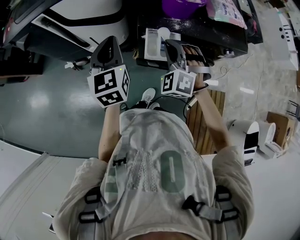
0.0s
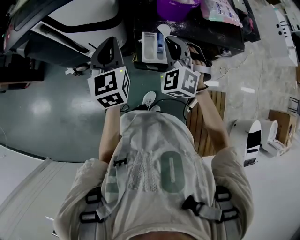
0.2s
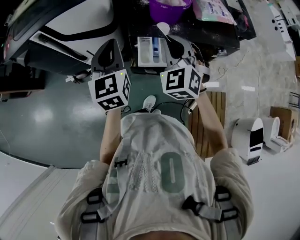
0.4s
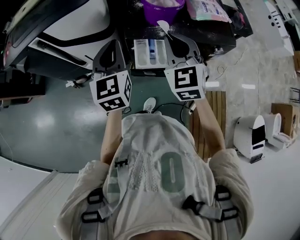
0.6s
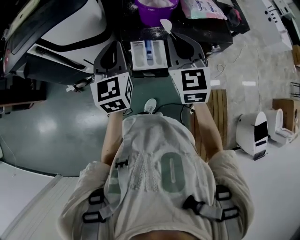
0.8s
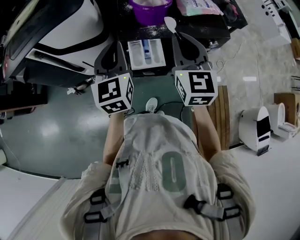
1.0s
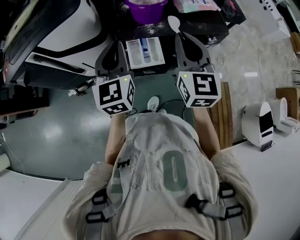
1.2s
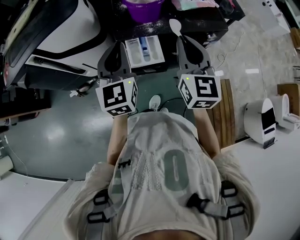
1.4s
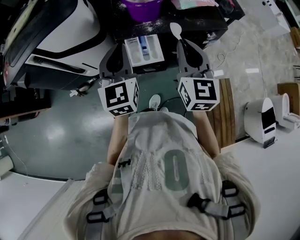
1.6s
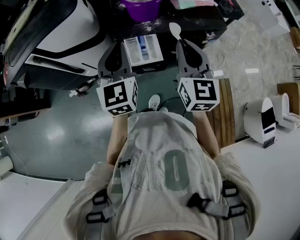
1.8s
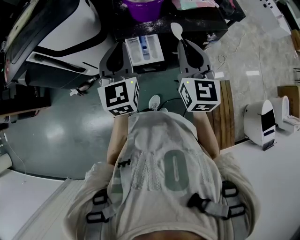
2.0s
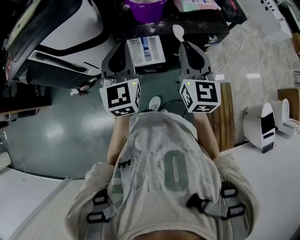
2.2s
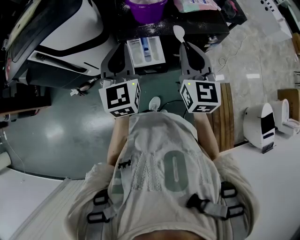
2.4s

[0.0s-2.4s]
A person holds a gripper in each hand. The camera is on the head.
0.0s to 1.2s: The right gripper goes some 20 cm upward and to the right, and rolls clockwise, seen from behind, by approximately 70 degrees. Meanwhile the left gripper travels to the right and upward by about 10 cm.
1.2s to 2.4s: There are only small adjustments of the grippers.

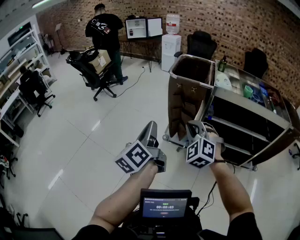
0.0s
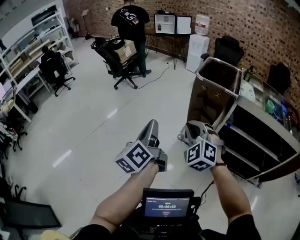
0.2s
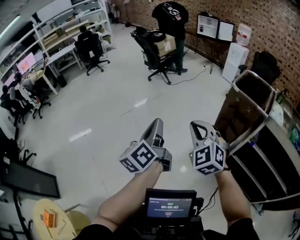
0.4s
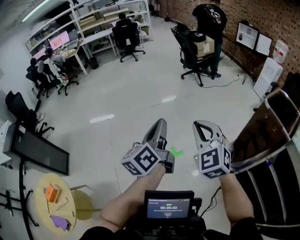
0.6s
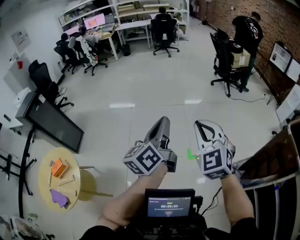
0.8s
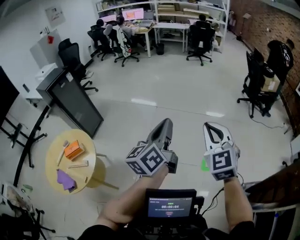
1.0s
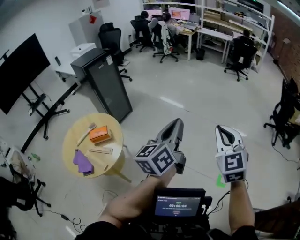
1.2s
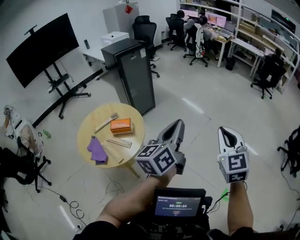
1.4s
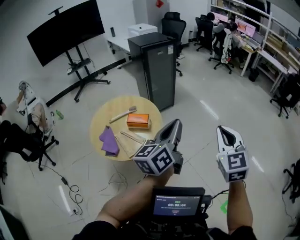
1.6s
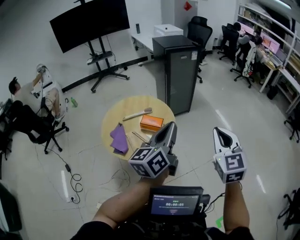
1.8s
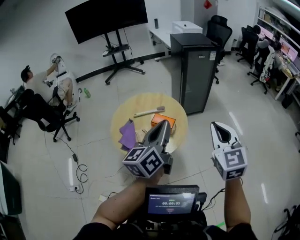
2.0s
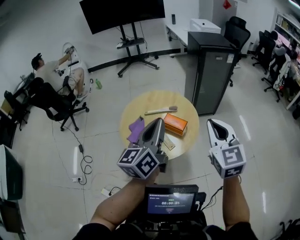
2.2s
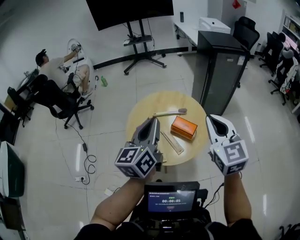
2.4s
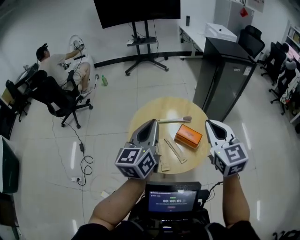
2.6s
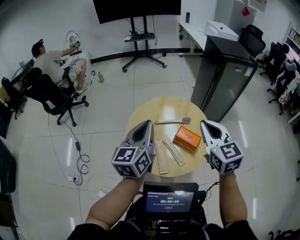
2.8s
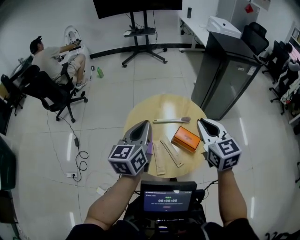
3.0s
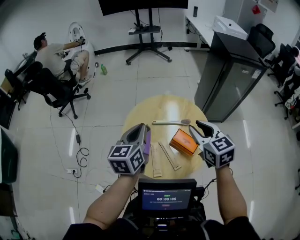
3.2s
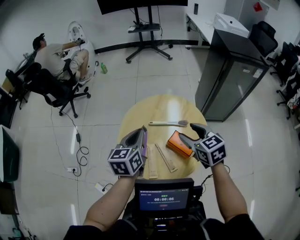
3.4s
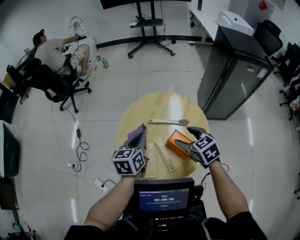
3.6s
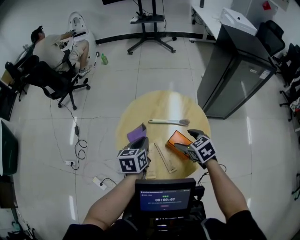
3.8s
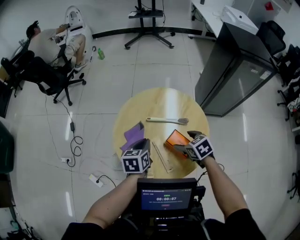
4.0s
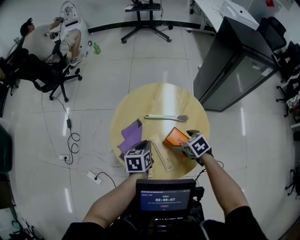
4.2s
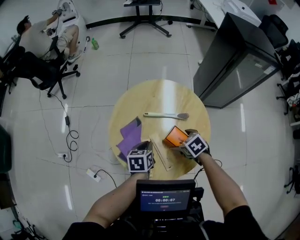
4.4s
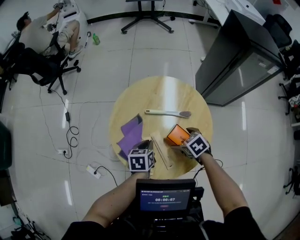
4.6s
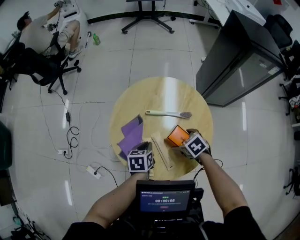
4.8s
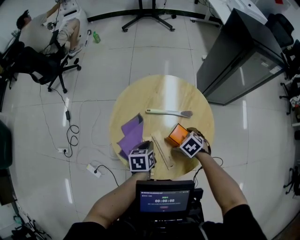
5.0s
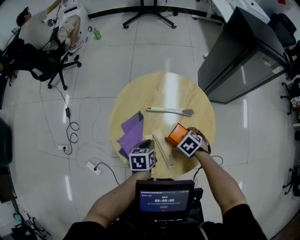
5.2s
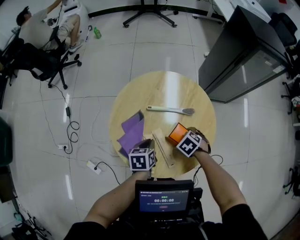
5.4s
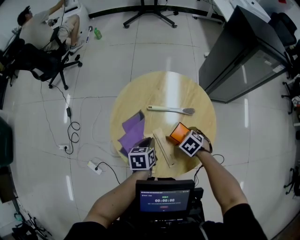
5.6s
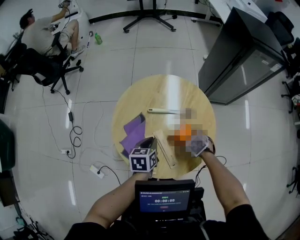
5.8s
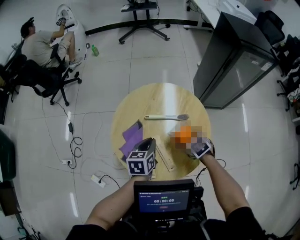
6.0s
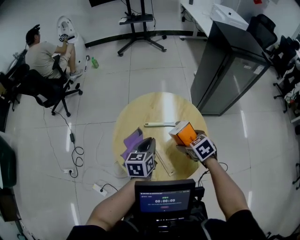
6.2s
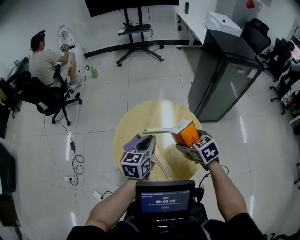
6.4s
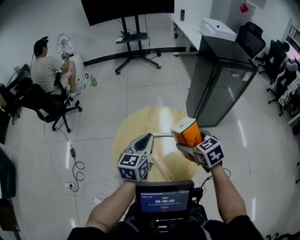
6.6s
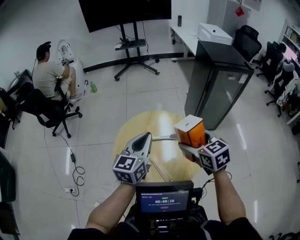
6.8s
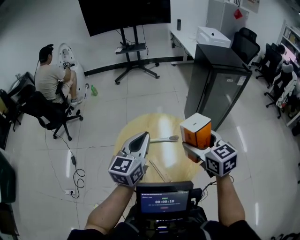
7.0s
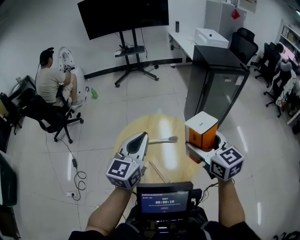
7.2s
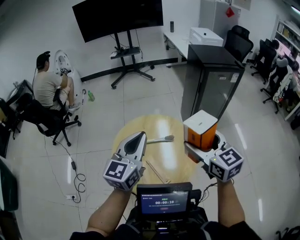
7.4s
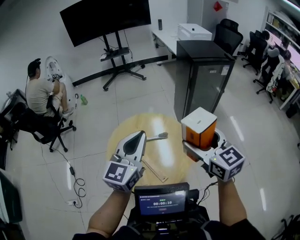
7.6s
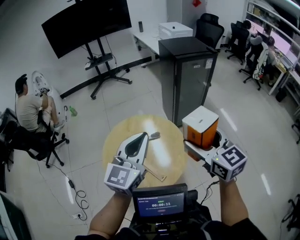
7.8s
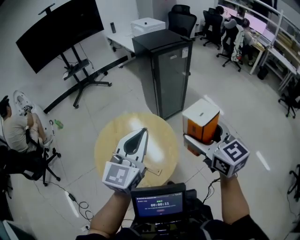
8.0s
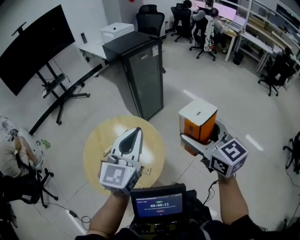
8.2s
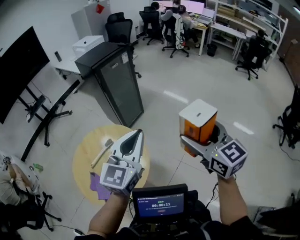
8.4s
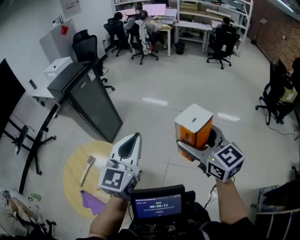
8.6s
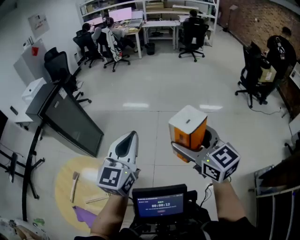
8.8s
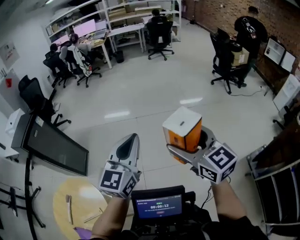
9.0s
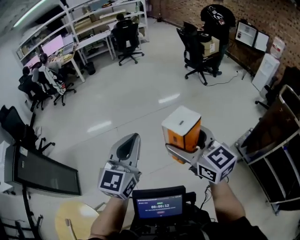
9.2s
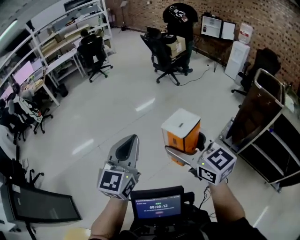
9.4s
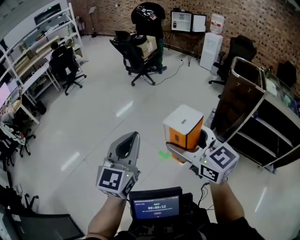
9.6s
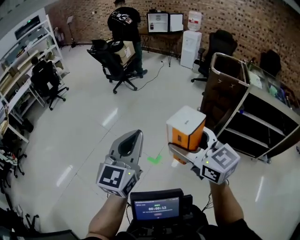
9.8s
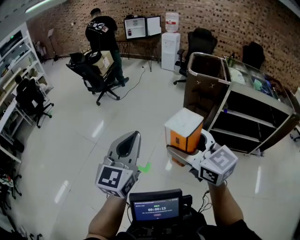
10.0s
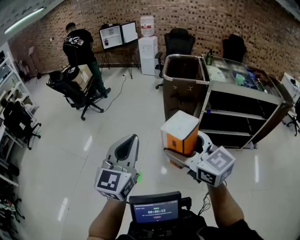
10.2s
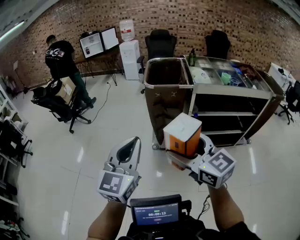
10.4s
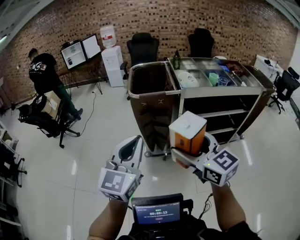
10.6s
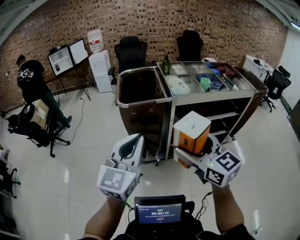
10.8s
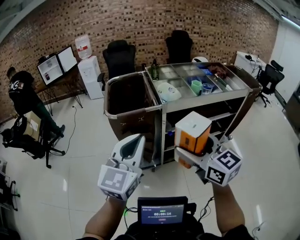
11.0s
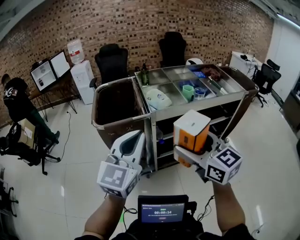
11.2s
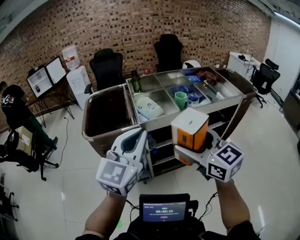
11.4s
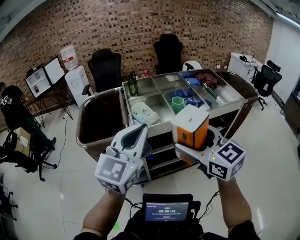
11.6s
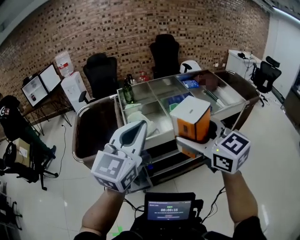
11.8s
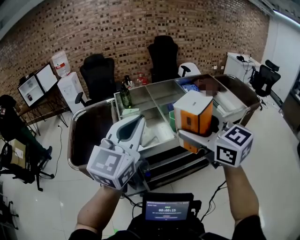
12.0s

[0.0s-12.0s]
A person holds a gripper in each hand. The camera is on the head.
0.0s to 1.6s: The two grippers travel together, roughly 1.5 m. The left gripper changes its angle by approximately 100 degrees, while the right gripper changes its angle by some 100 degrees.
1.6s to 3.0s: The pair of grippers is taken approximately 70 cm. The right gripper swivels approximately 50 degrees, while the left gripper swivels approximately 40 degrees.
3.0s to 4.4s: The right gripper is displaced downward and forward by approximately 40 cm, angles its fingers downward, by about 40 degrees, and opens up. The left gripper travels downward and to the right by about 35 cm, and tips its fingers downward by roughly 40 degrees.
4.4s to 6.0s: The right gripper reaches some 10 cm downward, then returns; the left gripper heads upward, covering roughly 5 cm.
6.0s to 7.6s: The two grippers go about 40 cm upward and backward. The left gripper points its fingers about 40 degrees further upward. Meanwhile the right gripper points its fingers approximately 50 degrees further upward.
7.6s to 9.0s: Both grippers are carried some 90 cm. The right gripper turns by roughly 80 degrees. The left gripper rotates about 80 degrees.
9.0s to 10.4s: Both grippers are carried about 1 m. The right gripper swivels roughly 70 degrees. The left gripper changes its angle by roughly 80 degrees.
10.4s to 12.0s: The two grippers travel together, forward and to the right, approximately 1 m. The left gripper rotates roughly 30 degrees. Meanwhile the right gripper rotates about 20 degrees.

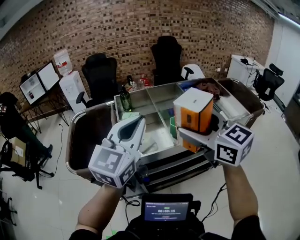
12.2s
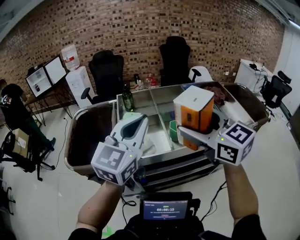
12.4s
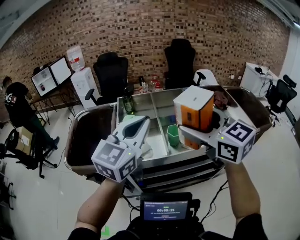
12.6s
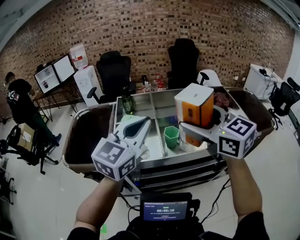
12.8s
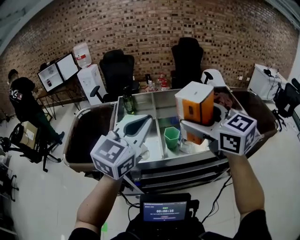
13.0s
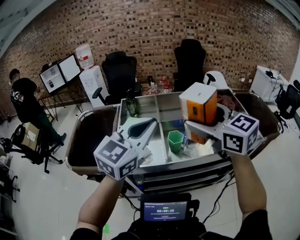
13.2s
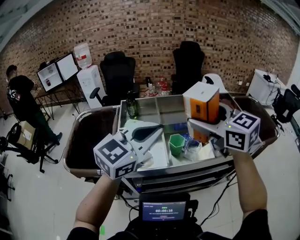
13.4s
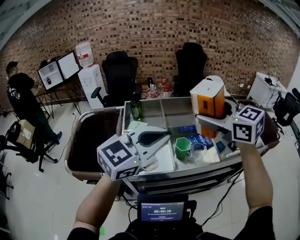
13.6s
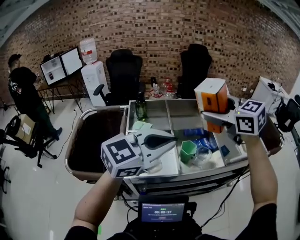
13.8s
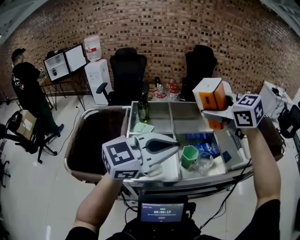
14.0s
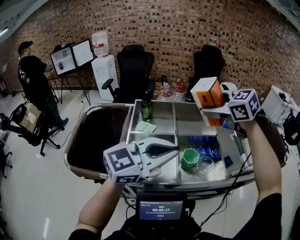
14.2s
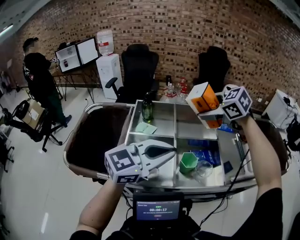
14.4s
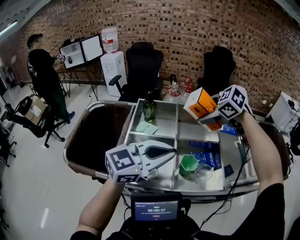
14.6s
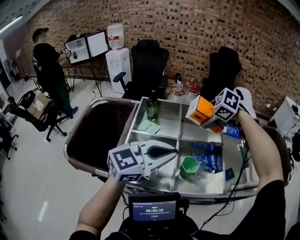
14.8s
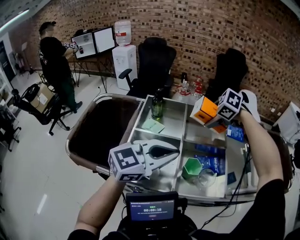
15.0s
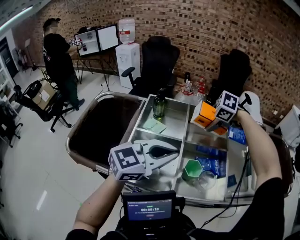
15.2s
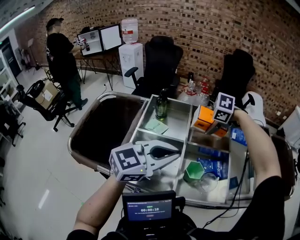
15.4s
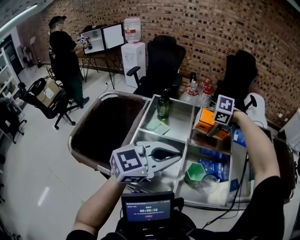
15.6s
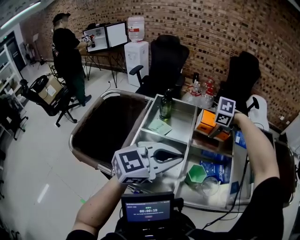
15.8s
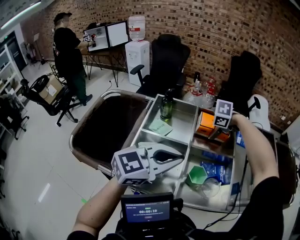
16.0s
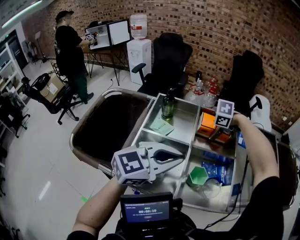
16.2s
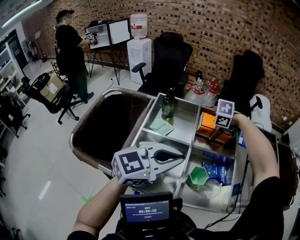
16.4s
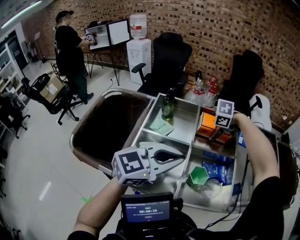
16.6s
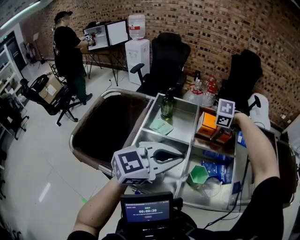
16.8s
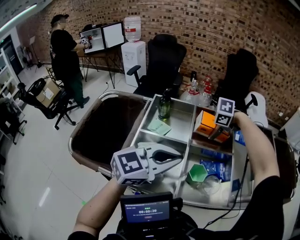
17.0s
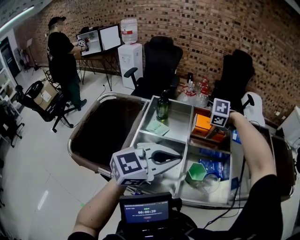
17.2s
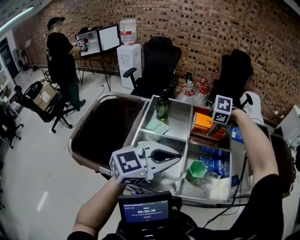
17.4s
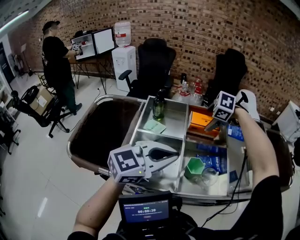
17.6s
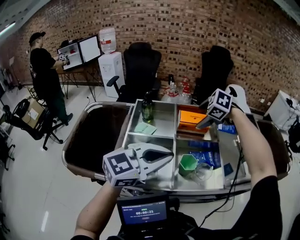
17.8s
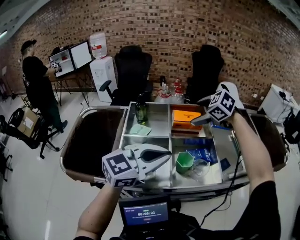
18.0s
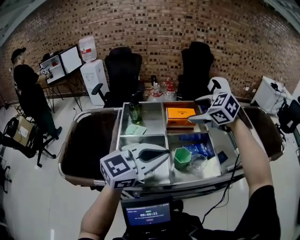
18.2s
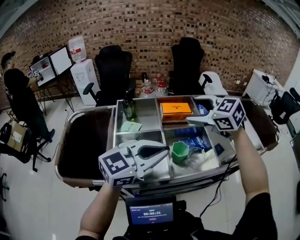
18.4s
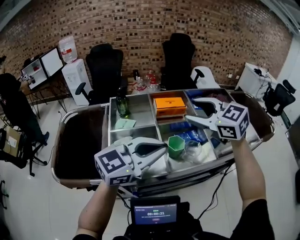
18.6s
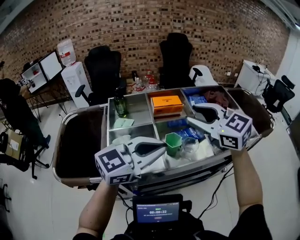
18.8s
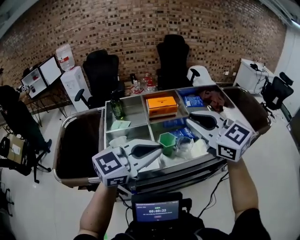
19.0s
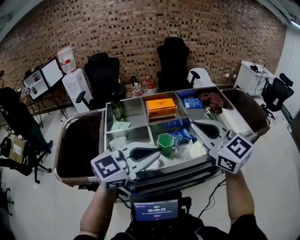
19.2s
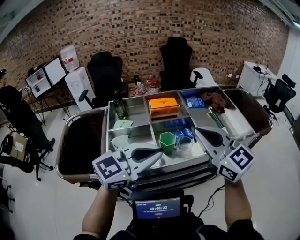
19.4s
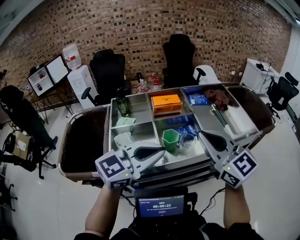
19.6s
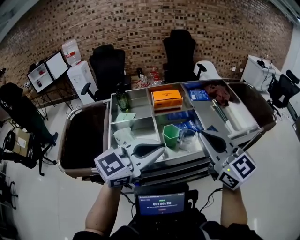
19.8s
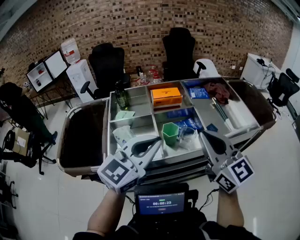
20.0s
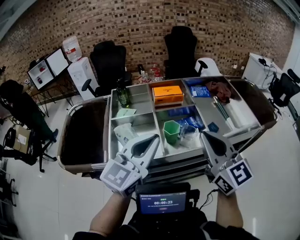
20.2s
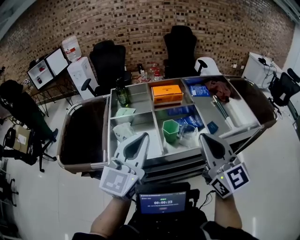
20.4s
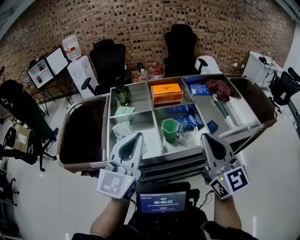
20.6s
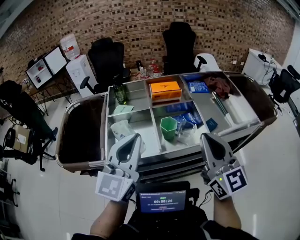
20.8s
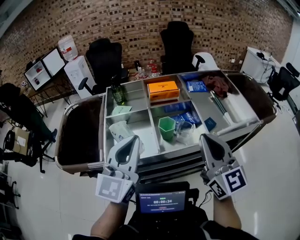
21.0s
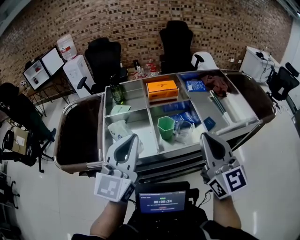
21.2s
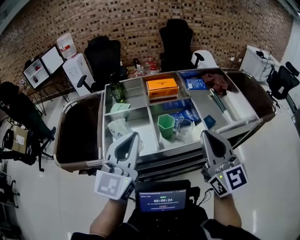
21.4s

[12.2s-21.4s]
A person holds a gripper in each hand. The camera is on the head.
12.2s to 13.8s: The left gripper heads forward and to the right, covering approximately 25 cm, and turns by roughly 30 degrees. The right gripper is displaced forward by about 35 cm.
13.8s to 15.2s: The left gripper ends up approximately 20 cm from where it was. Meanwhile the right gripper goes about 25 cm downward, and tilts its fingers about 50 degrees downward.
15.2s to 16.8s: The right gripper is displaced downward by approximately 10 cm.
16.8s to 18.4s: The right gripper moves upward, roughly 25 cm, and tips its fingers upward by some 50 degrees, while the left gripper shifts by some 10 cm.
18.4s to 19.8s: The right gripper heads backward and to the right, covering some 25 cm, points its fingers roughly 30 degrees further upward, and closes up. The left gripper goes roughly 15 cm backward and to the right.
19.8s to 21.4s: The right gripper changes place by approximately 5 cm; the left gripper heads to the left, covering approximately 5 cm, and turns by some 40 degrees.
